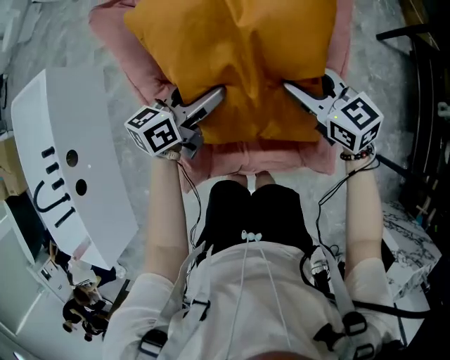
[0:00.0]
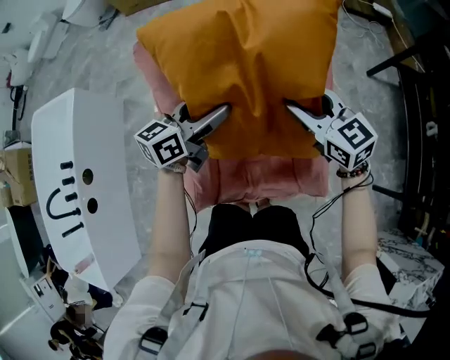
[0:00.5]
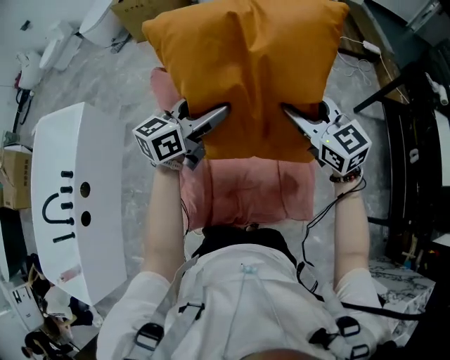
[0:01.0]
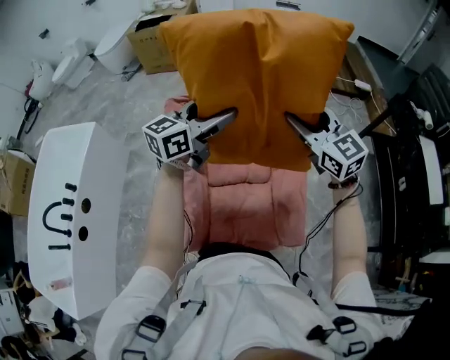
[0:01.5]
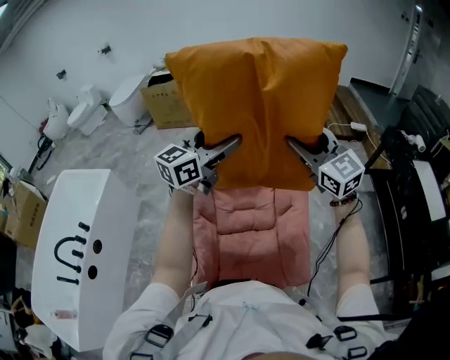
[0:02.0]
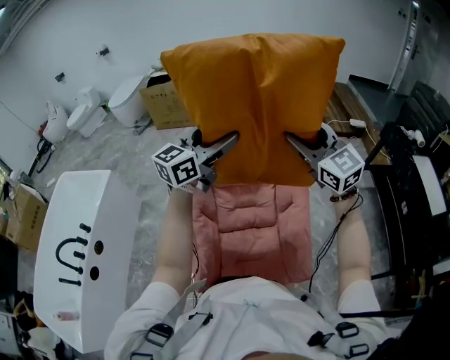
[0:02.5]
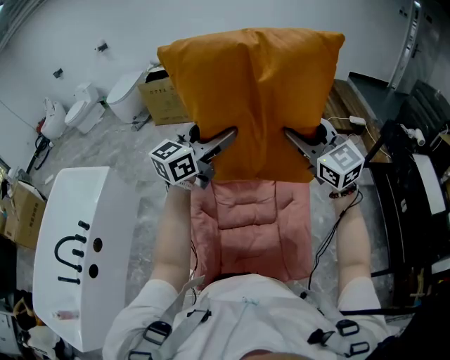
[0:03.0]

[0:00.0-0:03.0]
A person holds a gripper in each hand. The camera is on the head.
0:00.0 to 0:01.5: The two grippers go roughly 35 cm upward. The left gripper changes its angle by approximately 30 degrees. The right gripper turns by approximately 30 degrees.
0:01.5 to 0:03.0: Both grippers travel together upward, about 10 cm.

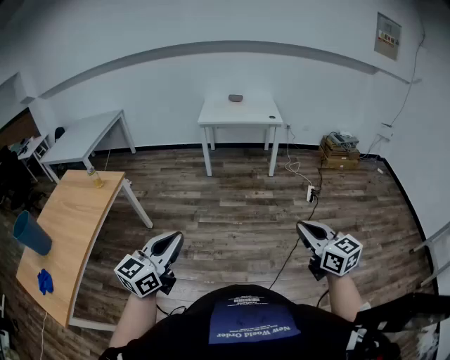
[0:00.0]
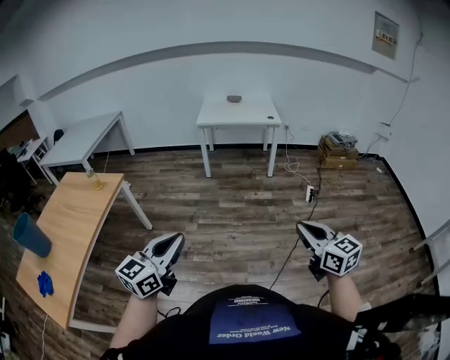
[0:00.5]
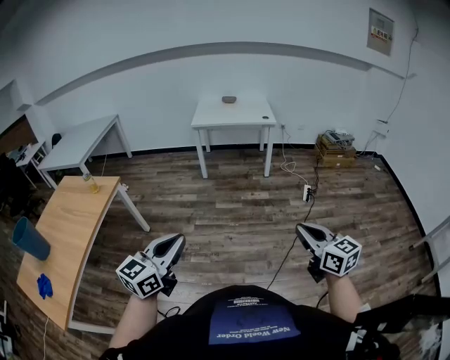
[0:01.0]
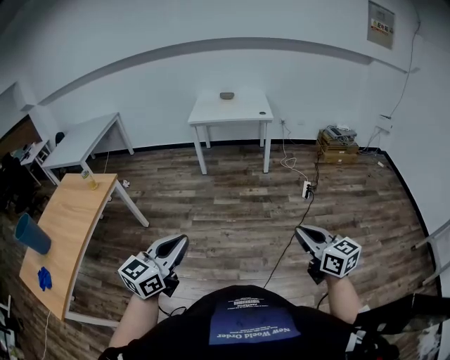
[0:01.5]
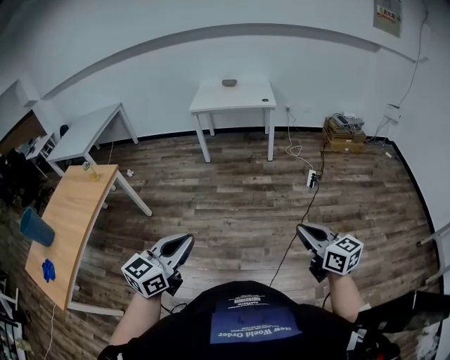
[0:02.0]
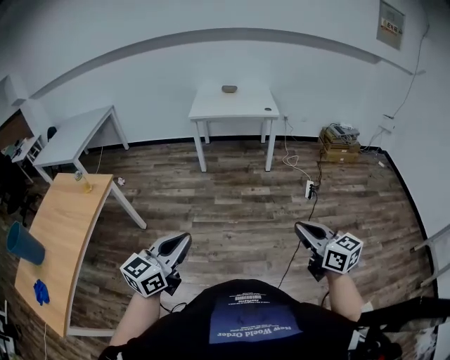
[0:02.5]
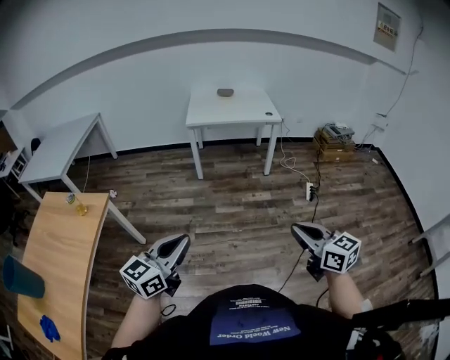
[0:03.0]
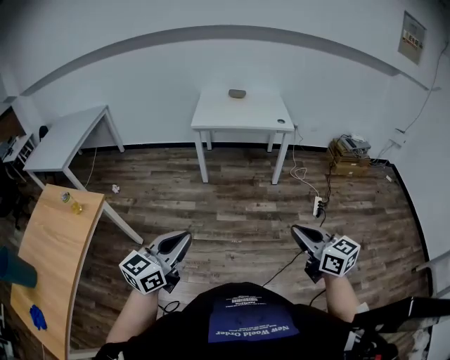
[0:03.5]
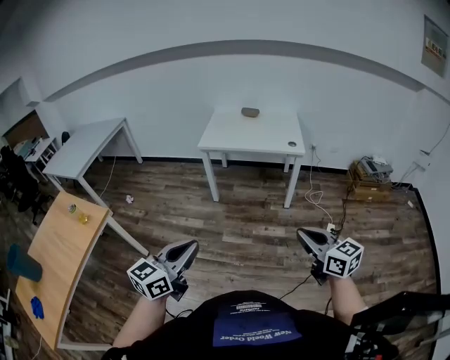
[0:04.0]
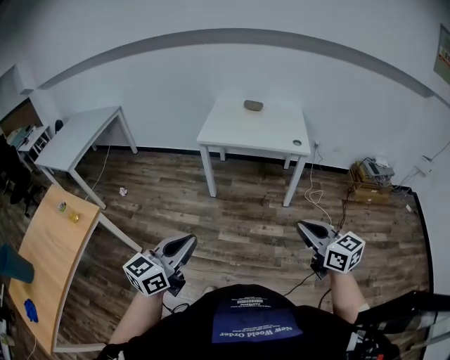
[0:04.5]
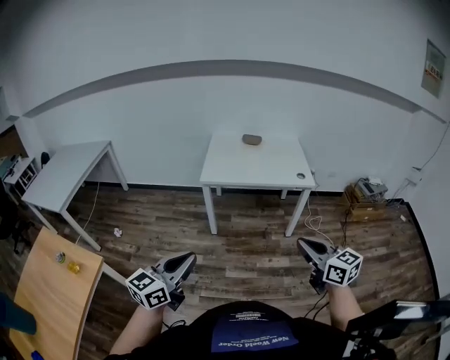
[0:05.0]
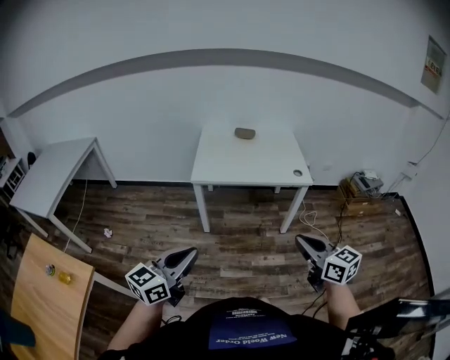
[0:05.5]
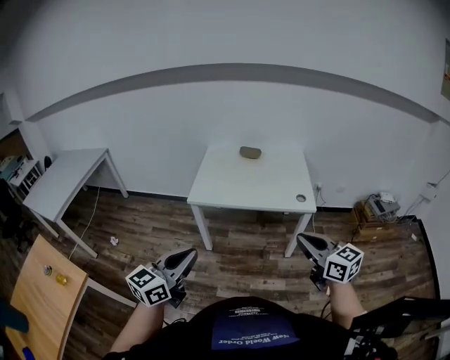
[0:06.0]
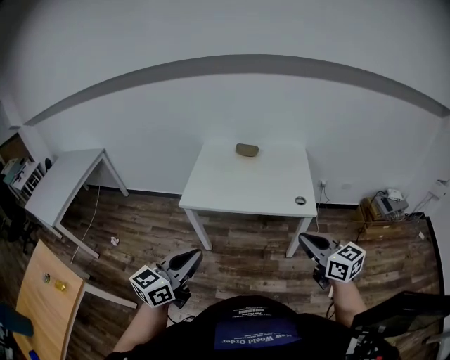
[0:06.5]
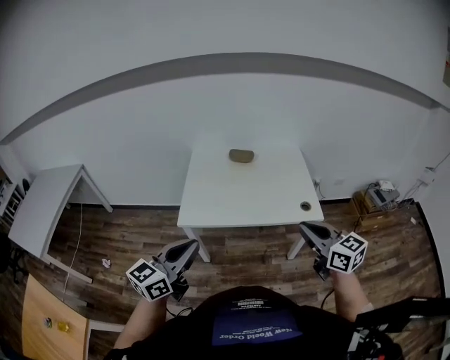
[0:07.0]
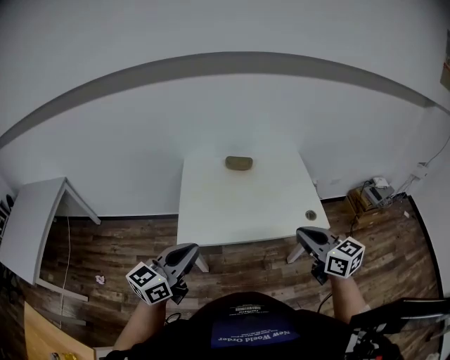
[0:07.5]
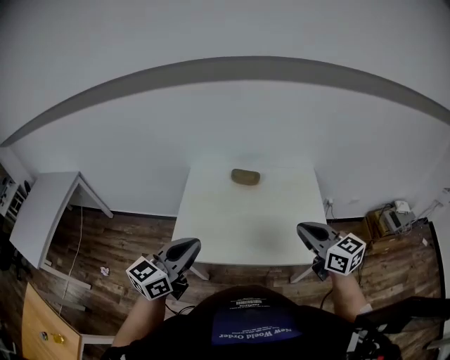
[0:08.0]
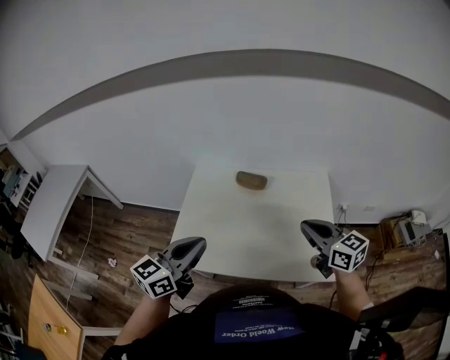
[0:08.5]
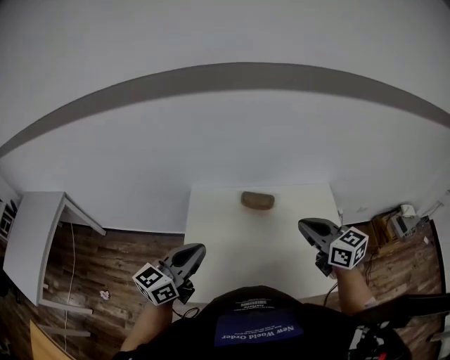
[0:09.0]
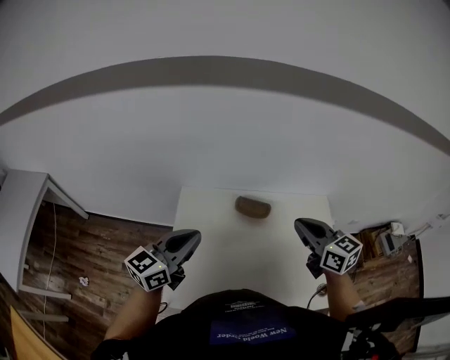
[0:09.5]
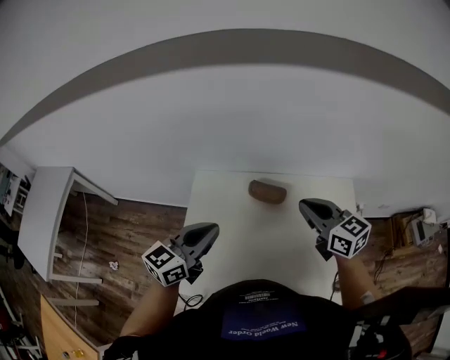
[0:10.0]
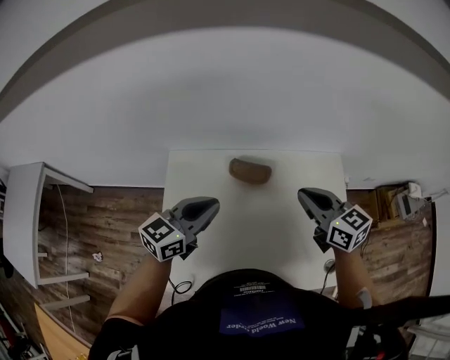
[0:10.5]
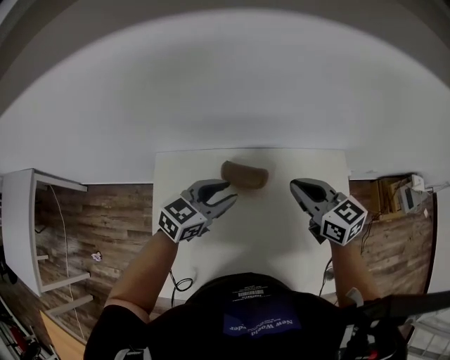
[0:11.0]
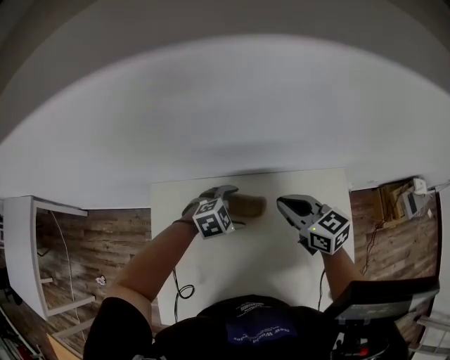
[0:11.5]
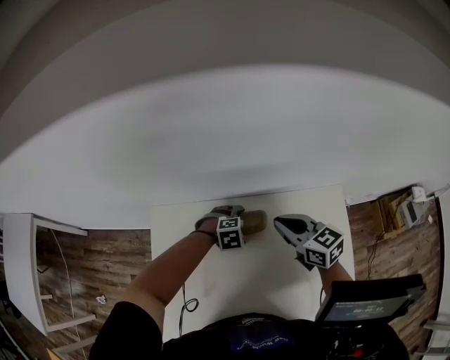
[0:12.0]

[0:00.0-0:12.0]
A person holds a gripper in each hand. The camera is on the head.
0:00.0 to 0:02.0: Both grippers travel together to the right, approximately 20 cm.
0:02.0 to 0:04.0: The pair of grippers is taken forward, about 50 cm.
0:04.0 to 0:06.0: The two grippers travel together, forward, roughly 40 cm.
0:06.0 to 0:08.0: The two grippers travel together, forward, approximately 50 cm.
0:08.0 to 0:10.0: Both grippers travel together forward, roughly 40 cm.
0:10.0 to 0:12.0: The right gripper ends up about 25 cm from where it was. Meanwhile the left gripper is displaced downward by some 35 cm, tilts its fingers approximately 60 degrees downward, and opens.

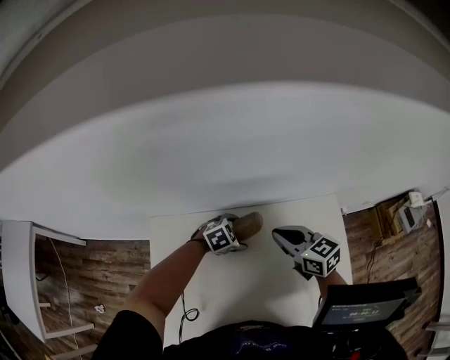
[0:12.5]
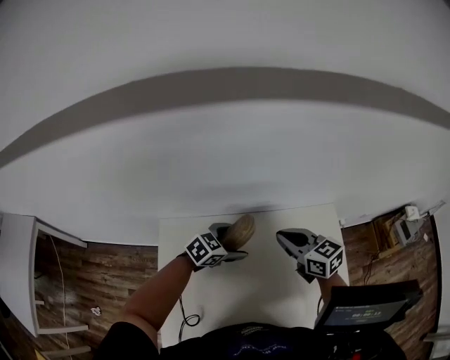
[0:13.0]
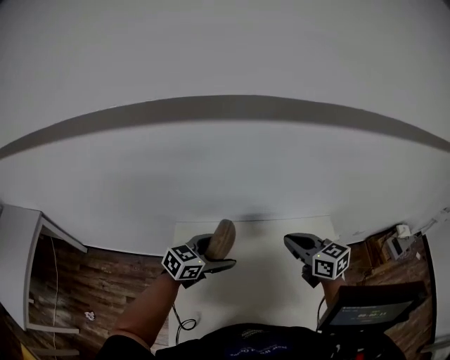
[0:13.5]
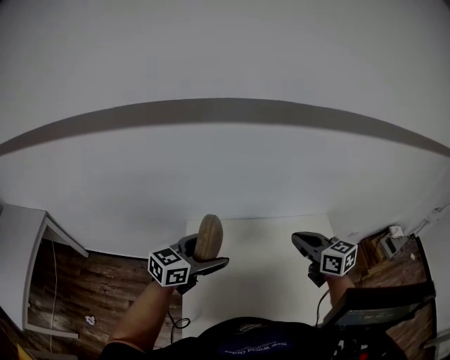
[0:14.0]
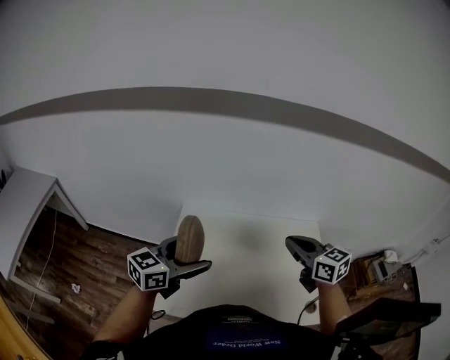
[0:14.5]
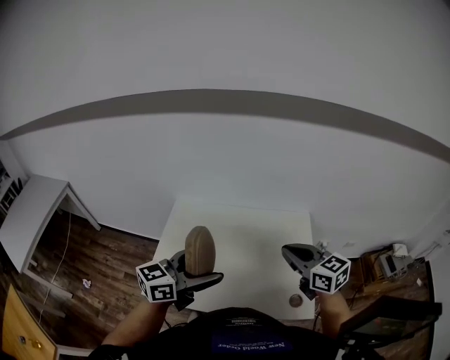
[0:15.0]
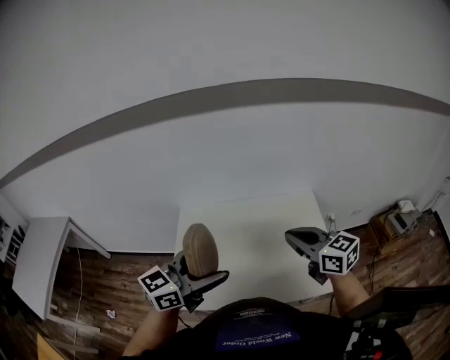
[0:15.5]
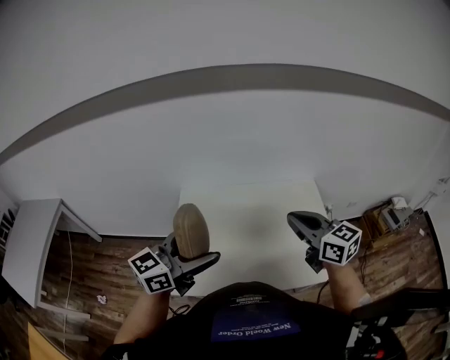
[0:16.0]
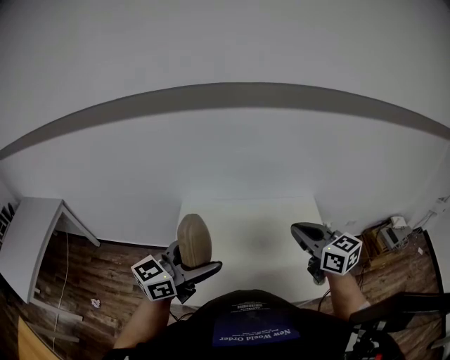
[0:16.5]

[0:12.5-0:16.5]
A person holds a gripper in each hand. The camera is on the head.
0:12.5 to 0:14.5: The right gripper ends up approximately 35 cm from where it was. Meanwhile the left gripper changes place by about 60 cm, and points its fingers about 50 degrees further upward.
0:14.5 to 0:16.5: The left gripper goes approximately 10 cm backward and upward, and goes to the right and returns, roughly 20 cm each way; the right gripper shifts roughly 10 cm backward, and moves approximately 15 cm to the right and comes back.

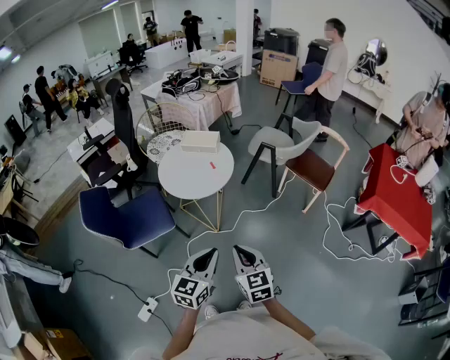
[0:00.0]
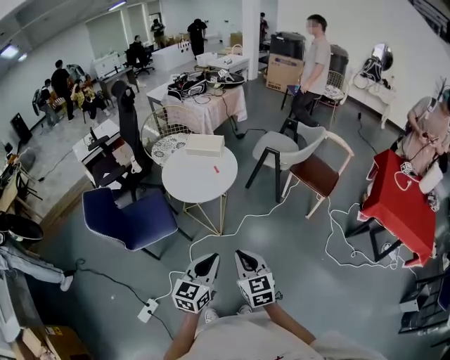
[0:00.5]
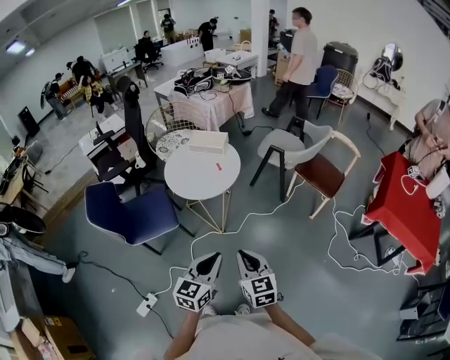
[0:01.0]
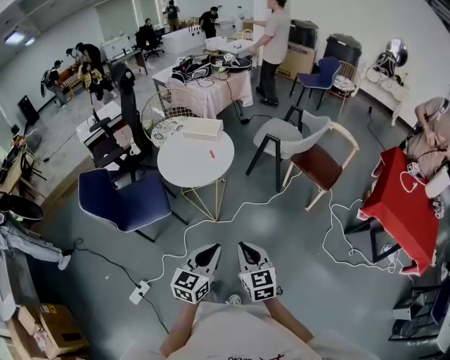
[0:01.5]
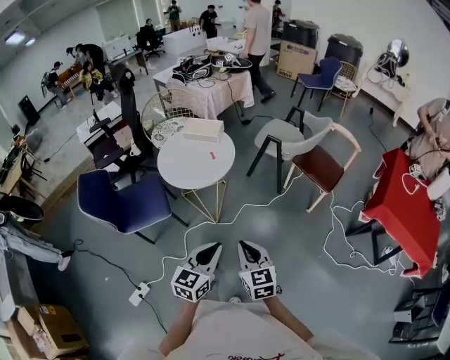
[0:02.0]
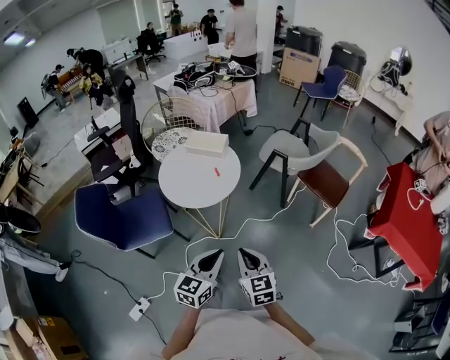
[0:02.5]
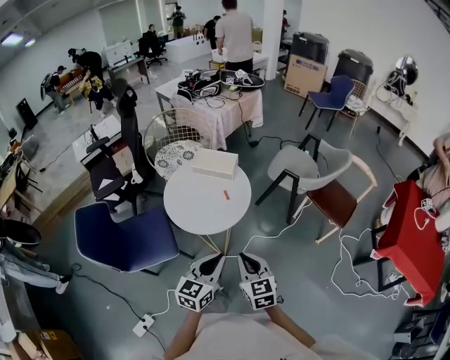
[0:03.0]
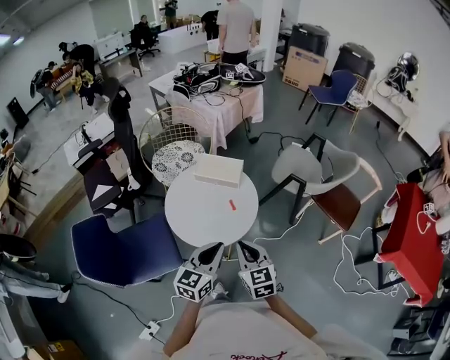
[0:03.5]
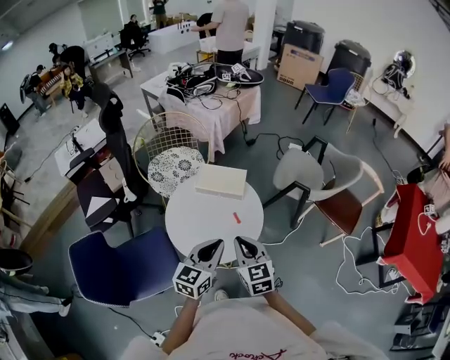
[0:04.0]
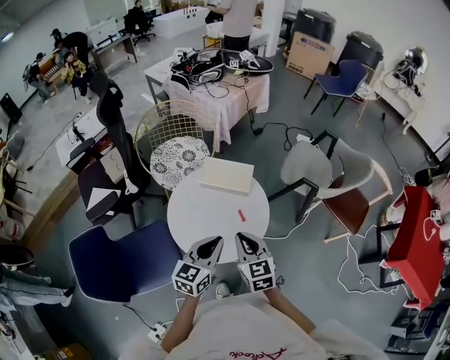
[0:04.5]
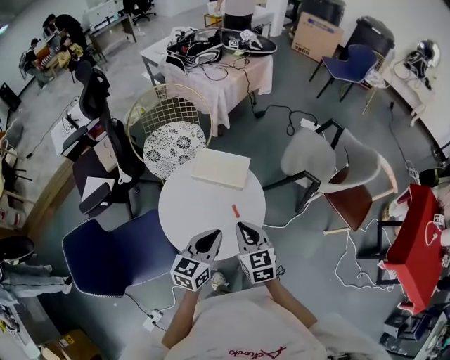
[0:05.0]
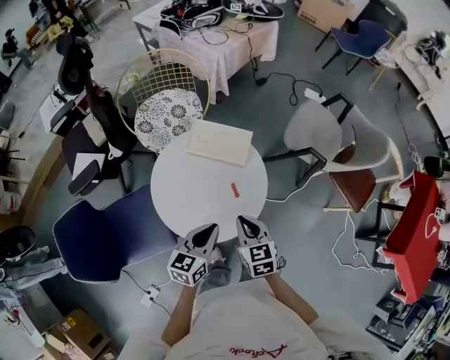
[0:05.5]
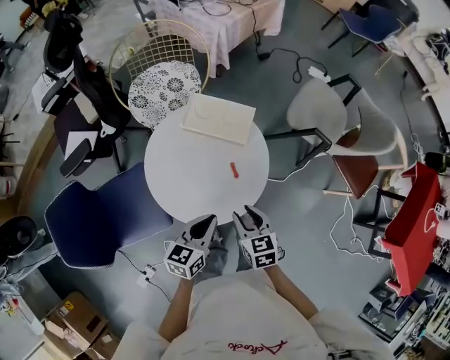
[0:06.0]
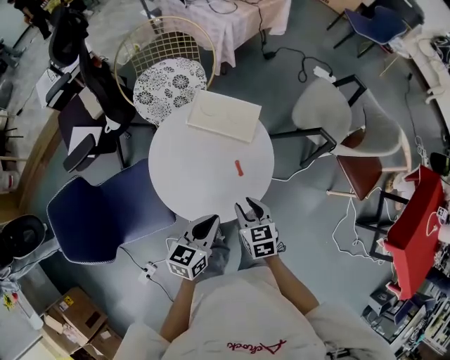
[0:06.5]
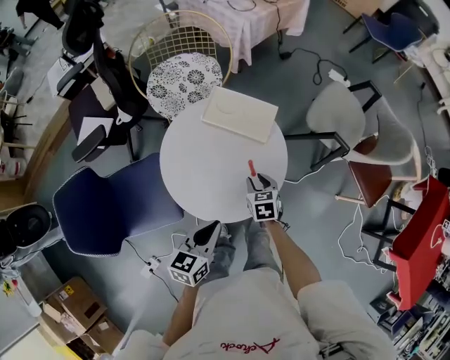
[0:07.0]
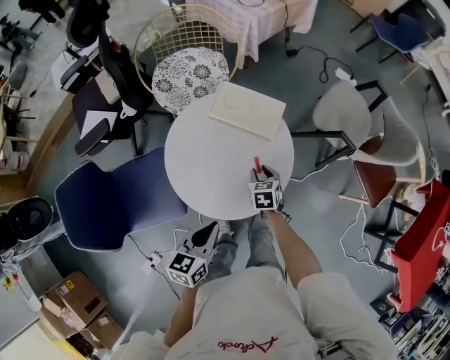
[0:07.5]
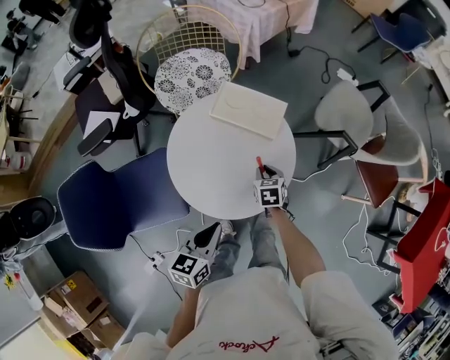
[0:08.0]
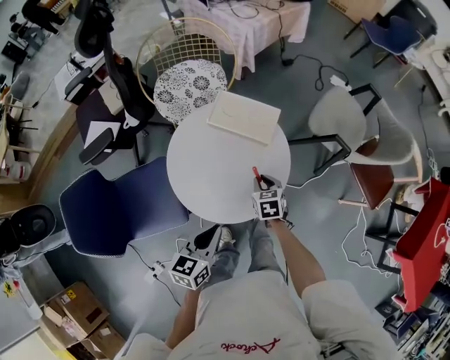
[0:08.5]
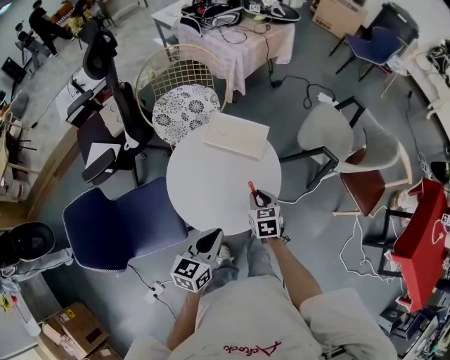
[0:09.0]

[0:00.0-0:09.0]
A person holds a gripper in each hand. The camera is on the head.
0:00.0 to 0:02.0: Both grippers move to the right, roughly 10 cm.
0:02.0 to 0:04.5: The pair of grippers is taken forward and to the left, approximately 50 cm.
0:04.5 to 0:07.0: The right gripper goes roughly 25 cm downward and forward, turns by roughly 30 degrees, and opens up, while the left gripper moves downward, approximately 10 cm, and turns by about 20 degrees.
0:07.0 to 0:09.0: The right gripper goes approximately 10 cm upward.
